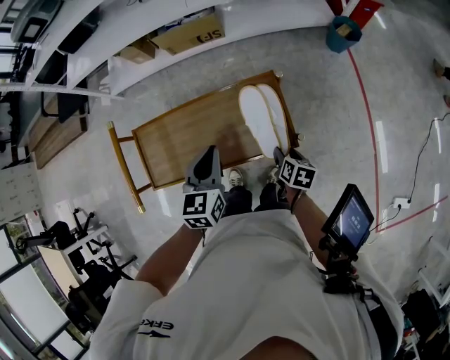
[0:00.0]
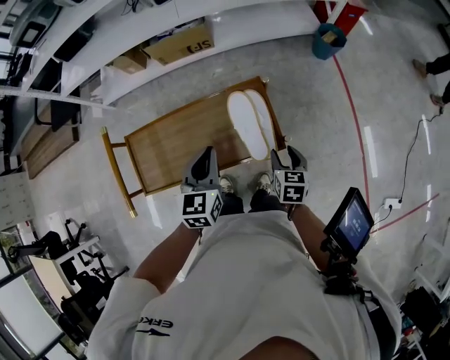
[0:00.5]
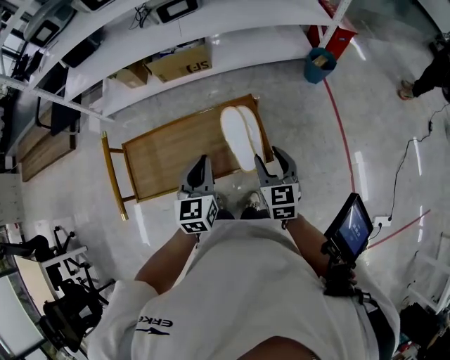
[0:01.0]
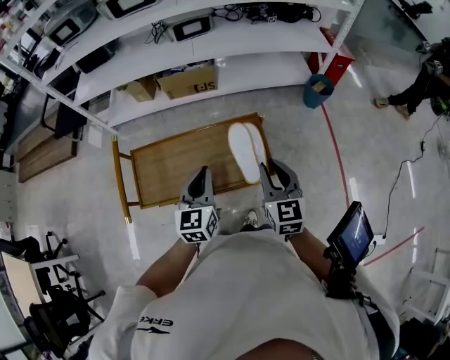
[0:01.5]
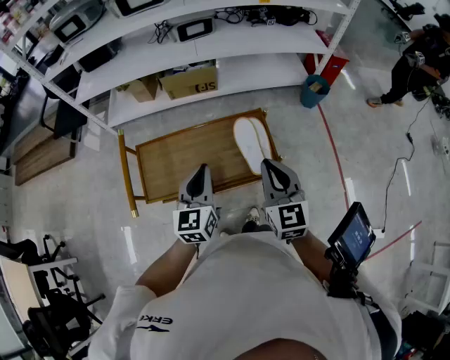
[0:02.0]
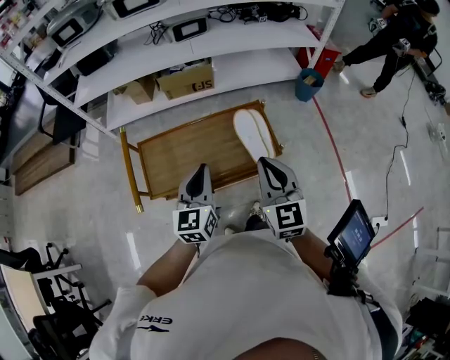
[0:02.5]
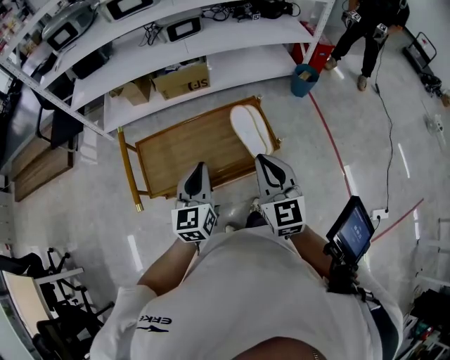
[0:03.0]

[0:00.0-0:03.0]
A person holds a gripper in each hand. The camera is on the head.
0:00.0 to 0:01.5: The left gripper goes approximately 10 cm upward and backward. The right gripper travels upward by some 25 cm, points its fingers roughly 40 degrees further upward, and closes up.
0:01.5 to 0:03.0: The right gripper moves backward, to the left and upward, roughly 15 cm. The left gripper shifts approximately 10 cm backward and to the left.

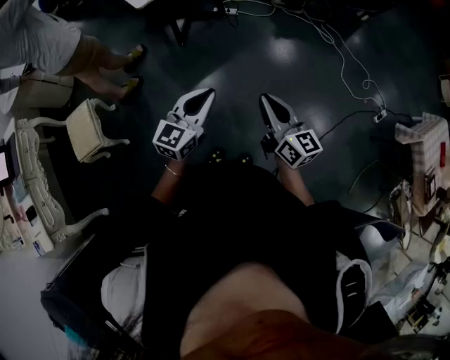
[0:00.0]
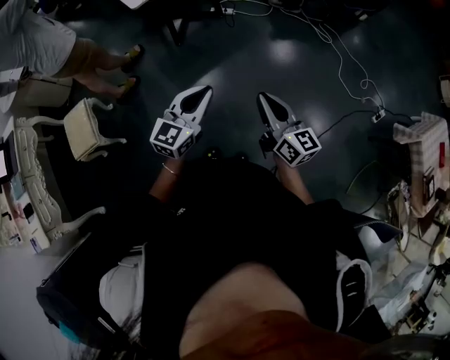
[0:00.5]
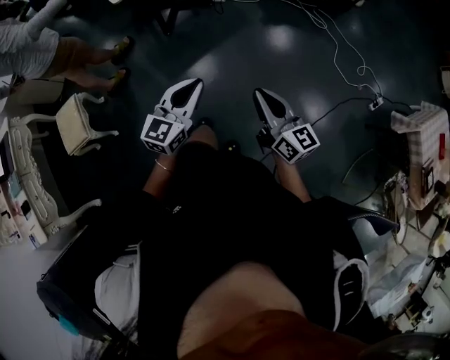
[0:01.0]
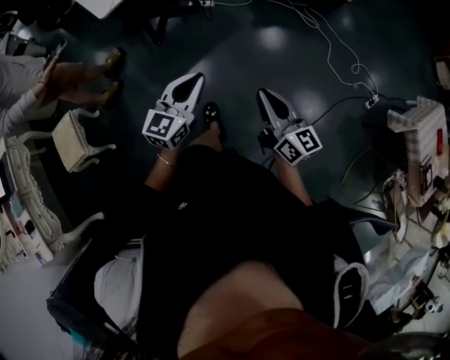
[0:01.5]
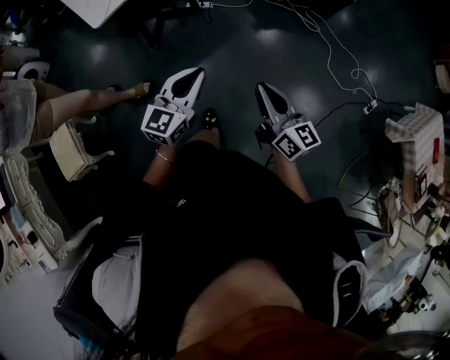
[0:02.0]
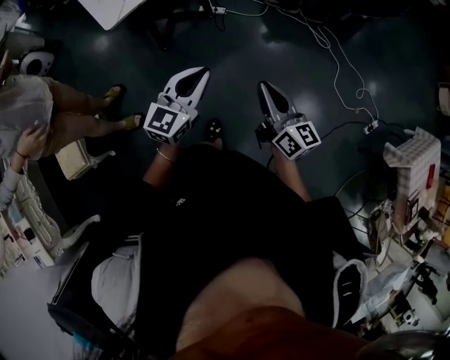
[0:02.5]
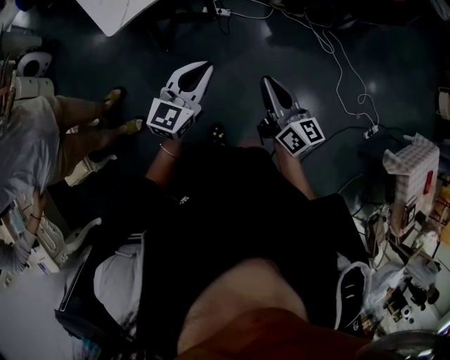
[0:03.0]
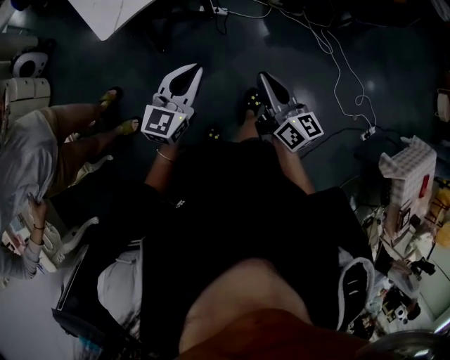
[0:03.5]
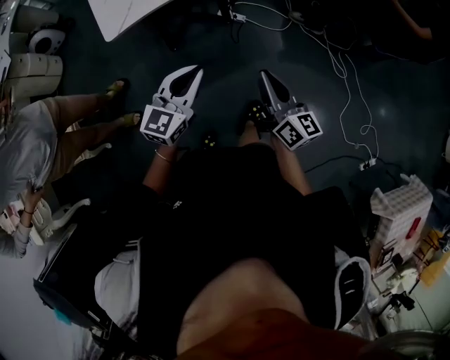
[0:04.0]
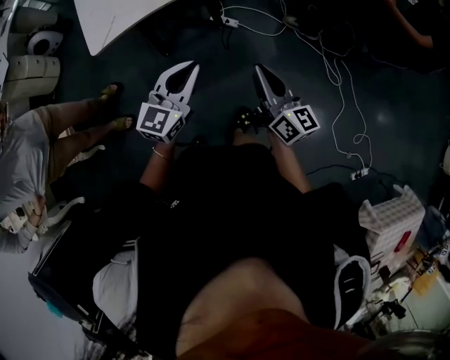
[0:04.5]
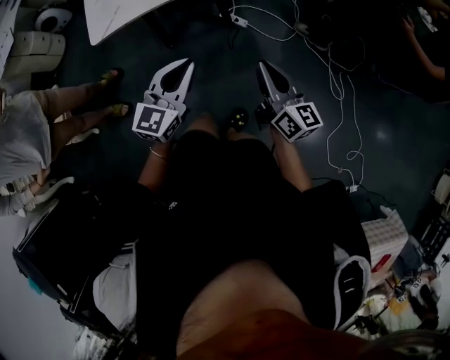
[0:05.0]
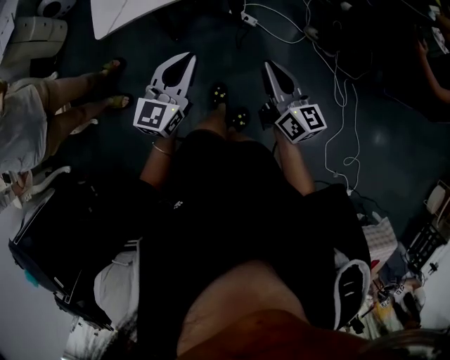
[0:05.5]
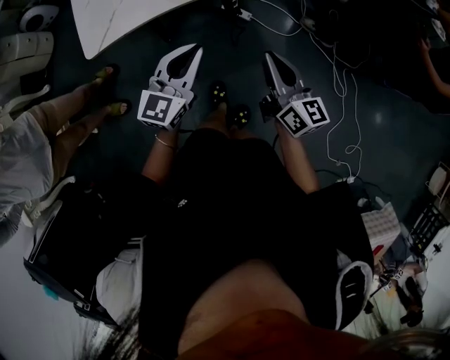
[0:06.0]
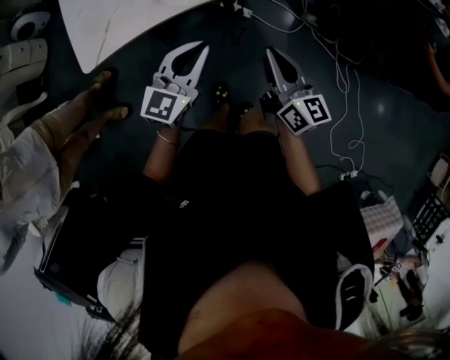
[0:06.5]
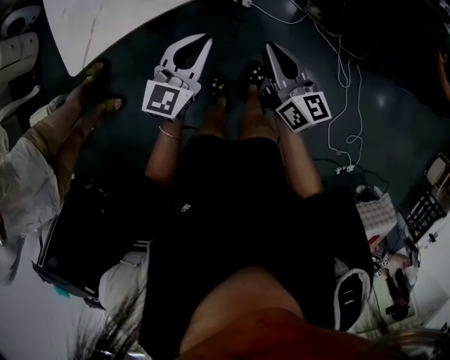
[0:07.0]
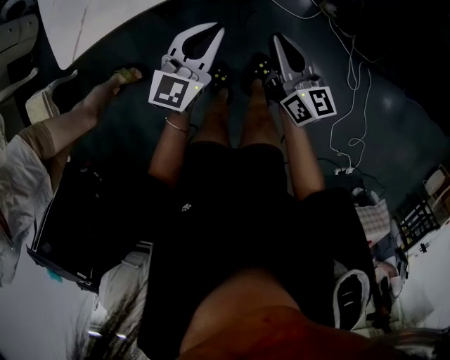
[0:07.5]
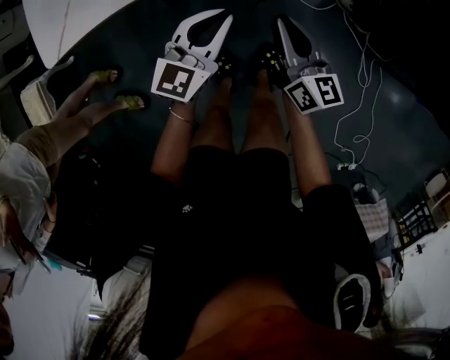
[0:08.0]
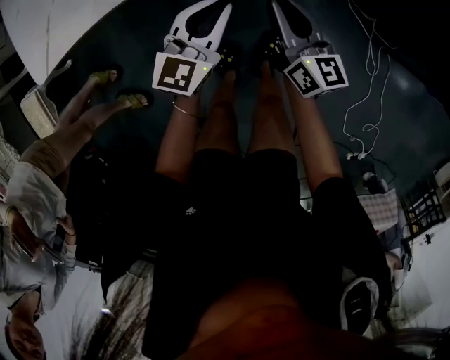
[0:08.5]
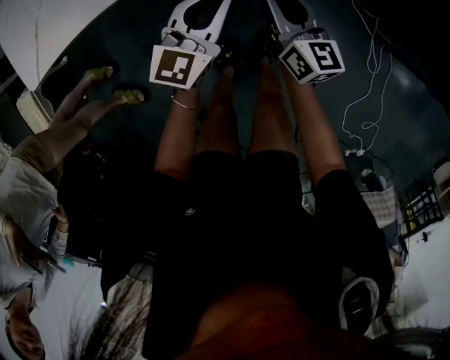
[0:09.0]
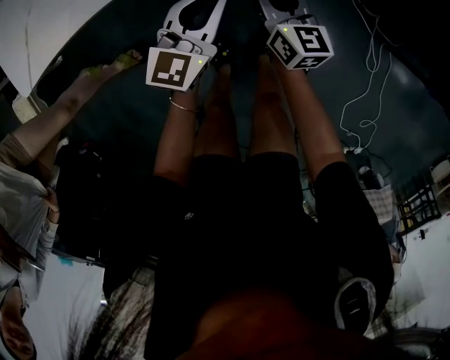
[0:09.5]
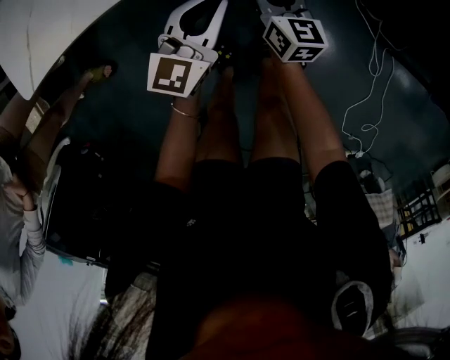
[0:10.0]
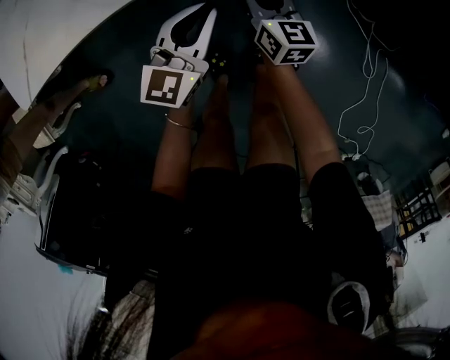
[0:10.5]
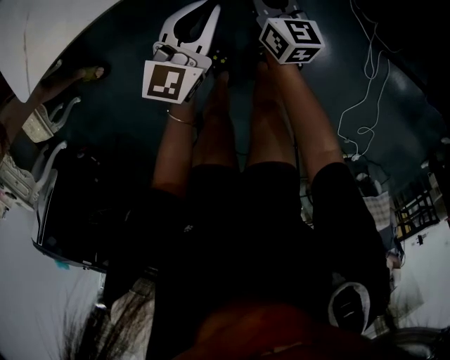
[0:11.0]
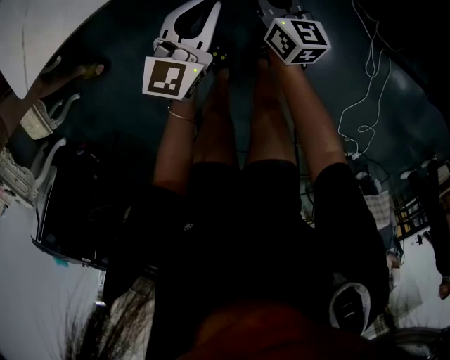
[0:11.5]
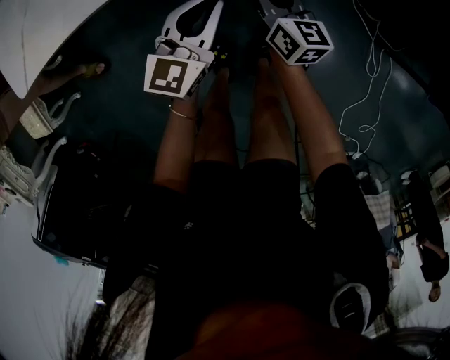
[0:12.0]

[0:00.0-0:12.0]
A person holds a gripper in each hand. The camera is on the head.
0:00.0 to 0:02.0: The two grippers go approximately 15 cm forward and to the right.
0:02.0 to 0:04.0: Both grippers travel together forward, approximately 25 cm.
0:04.0 to 0:06.0: Both grippers travel together forward, roughly 20 cm.
0:06.0 to 0:08.0: Both grippers move downward and forward, about 20 cm.
0:08.0 to 0:10.0: The right gripper heads downward and forward, covering roughly 15 cm, and opens its fingers, while the left gripper is displaced downward by some 5 cm.
0:10.0 to 0:12.0: There are only small adjustments of the grippers.

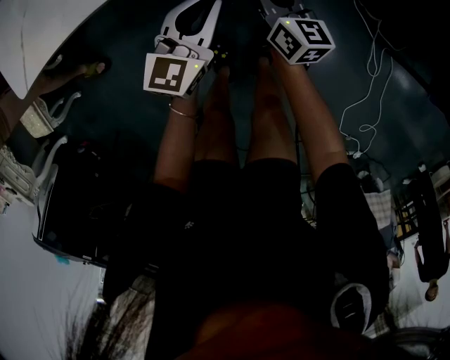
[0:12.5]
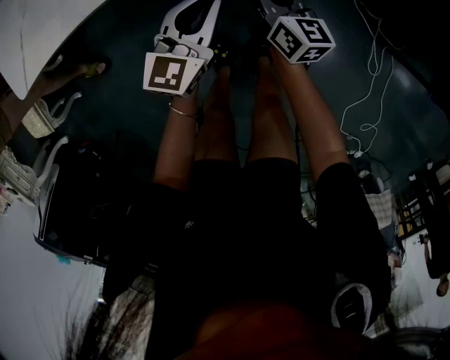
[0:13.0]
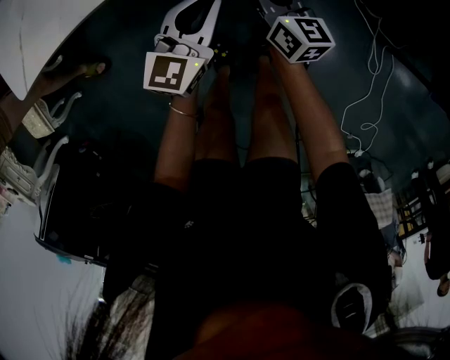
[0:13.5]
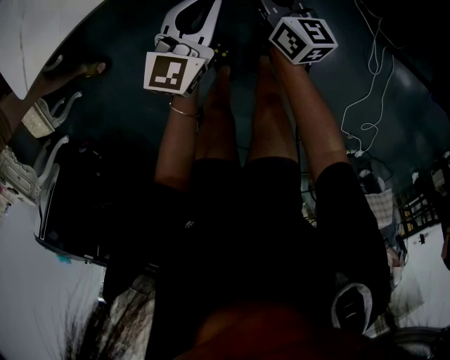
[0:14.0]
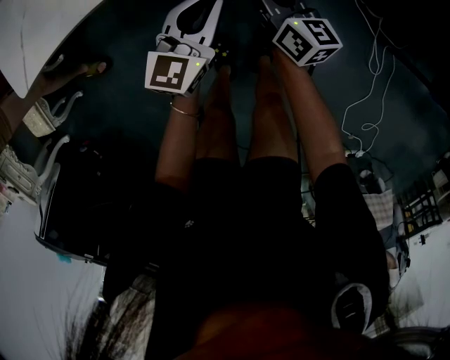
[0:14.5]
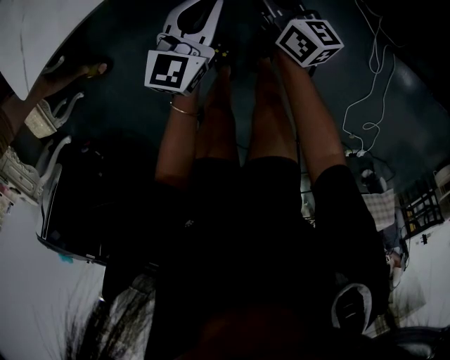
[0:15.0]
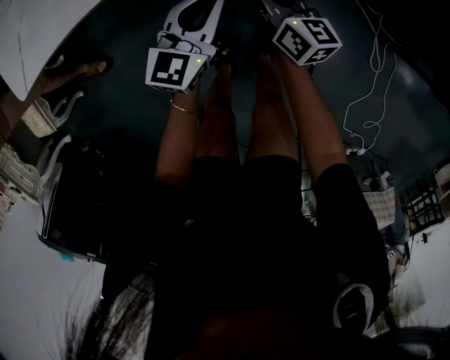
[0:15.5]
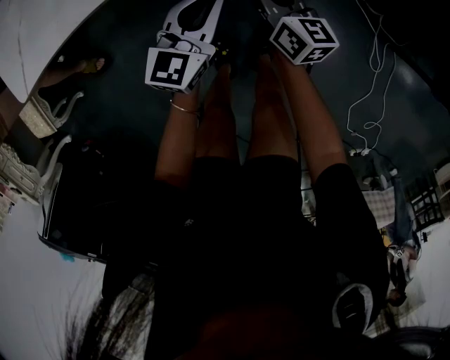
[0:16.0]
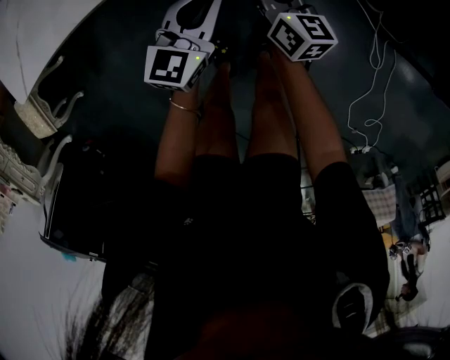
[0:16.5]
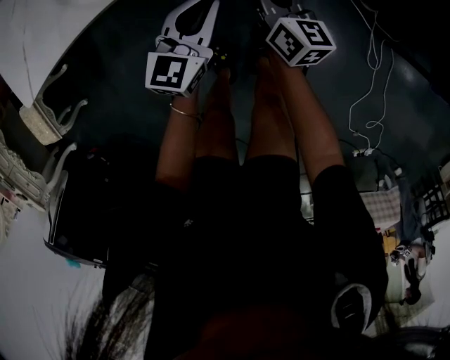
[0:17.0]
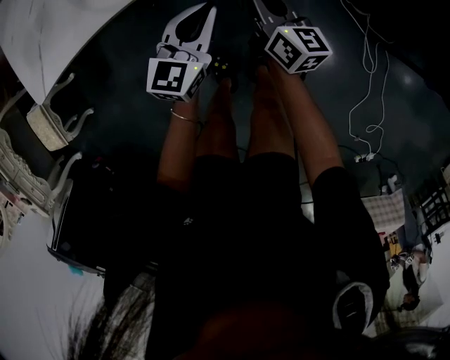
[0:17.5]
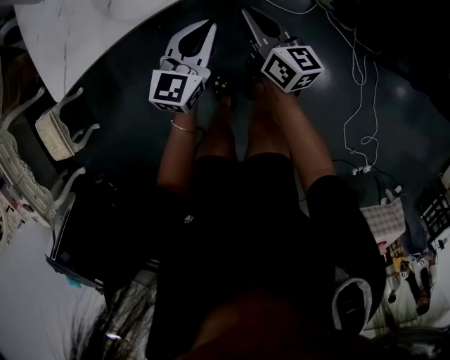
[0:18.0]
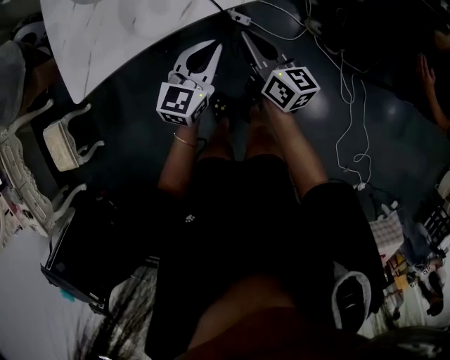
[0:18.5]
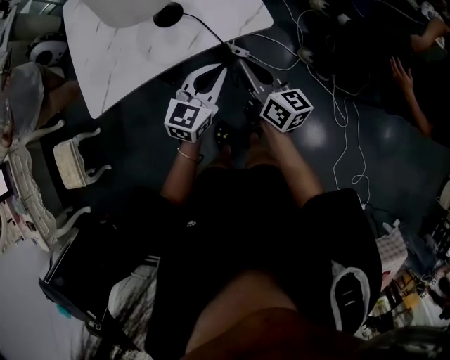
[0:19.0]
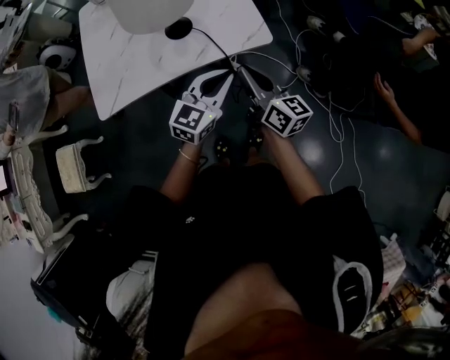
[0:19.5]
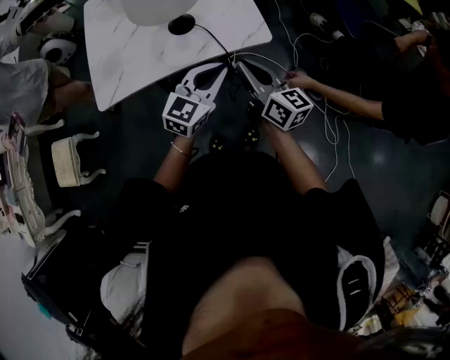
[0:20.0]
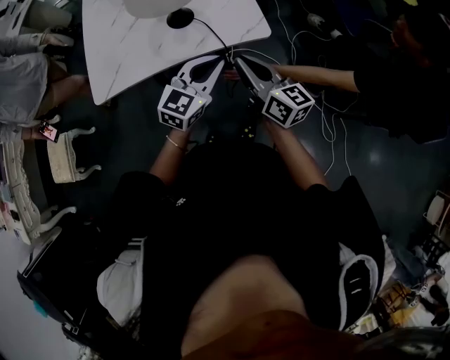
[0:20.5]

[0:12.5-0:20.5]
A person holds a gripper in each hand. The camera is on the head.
0:12.5 to 0:16.5: The grippers stay close to where they were, moving slightly.
0:16.5 to 0:18.5: Both grippers move upward, some 20 cm.
0:18.5 to 0:20.5: The two grippers go roughly 15 cm upward.

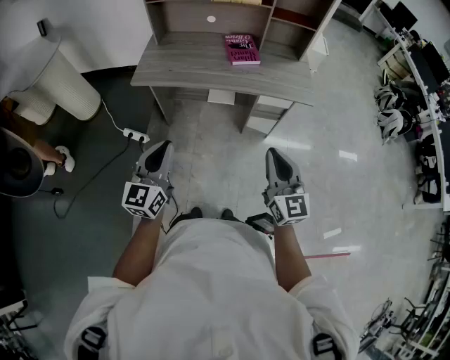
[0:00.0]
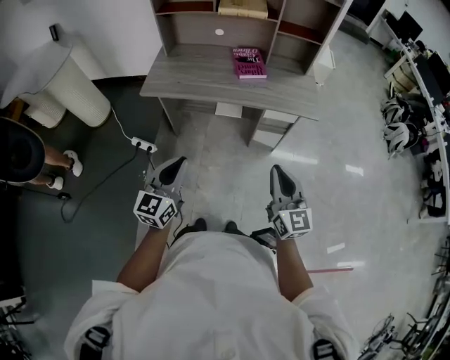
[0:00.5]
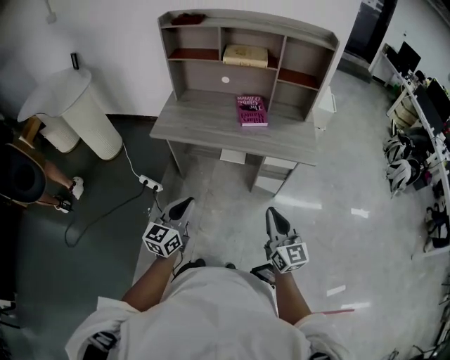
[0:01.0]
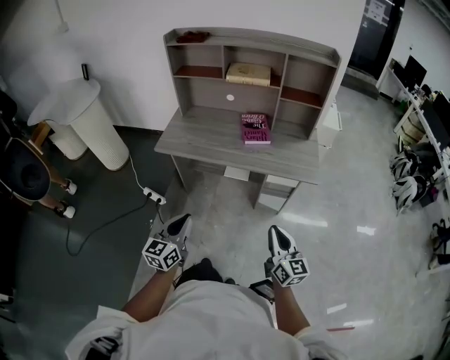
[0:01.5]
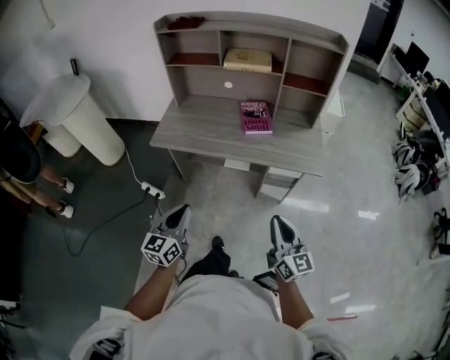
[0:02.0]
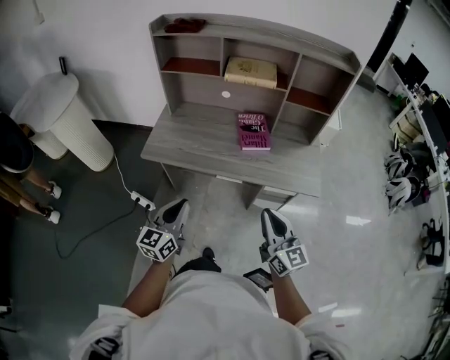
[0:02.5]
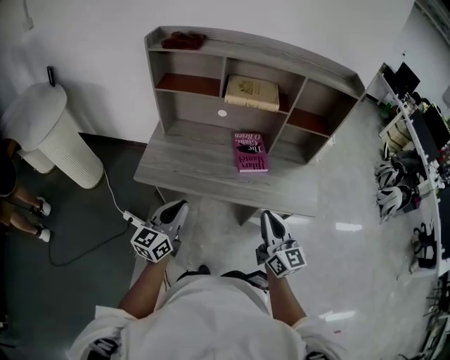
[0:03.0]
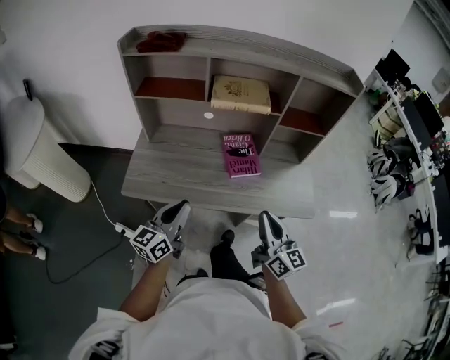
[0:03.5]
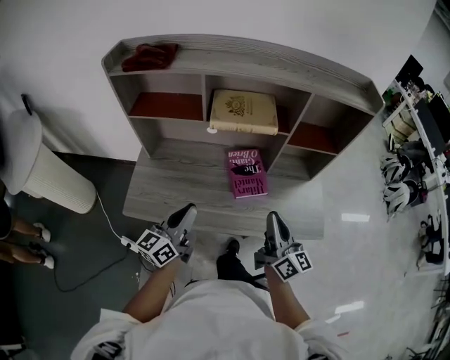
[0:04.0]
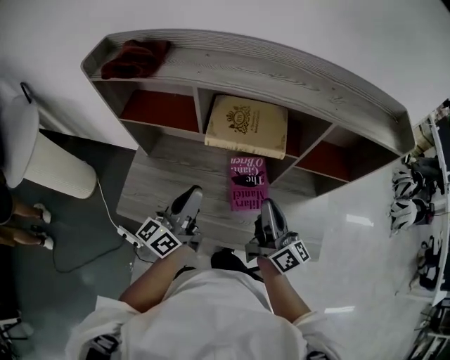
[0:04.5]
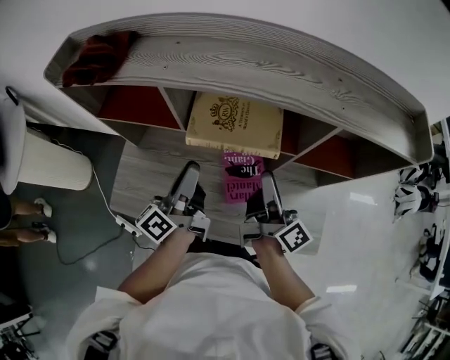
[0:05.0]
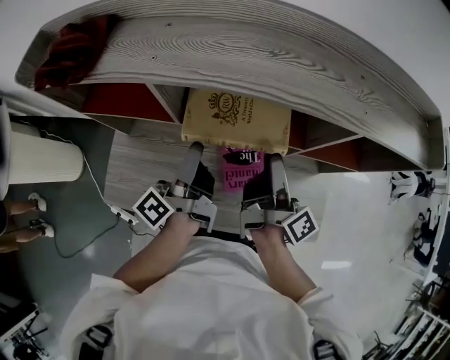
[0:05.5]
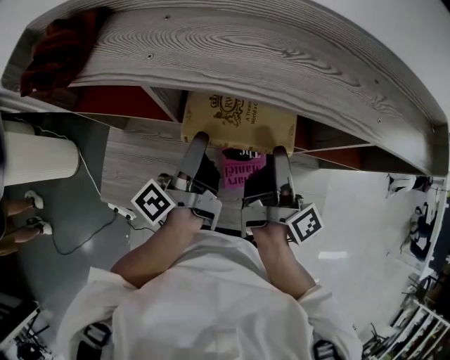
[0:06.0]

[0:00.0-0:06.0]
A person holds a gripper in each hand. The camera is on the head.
0:00.0 to 0:02.0: The right gripper heads forward and to the right, covering about 10 cm, while the left gripper travels forward by roughly 5 cm.
0:02.0 to 0:04.0: The two grippers go about 40 cm forward. The left gripper changes its angle by approximately 20 degrees.
0:04.0 to 0:06.0: Both grippers travel together forward, approximately 30 cm. The left gripper rolls counterclockwise, seen from behind, by approximately 50 degrees, and opens up. Meanwhile the right gripper rolls clockwise, seen from behind, by approximately 50 degrees, and opens.
